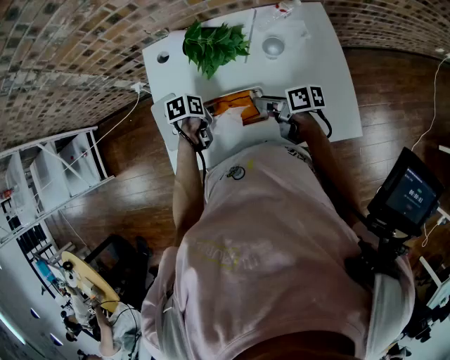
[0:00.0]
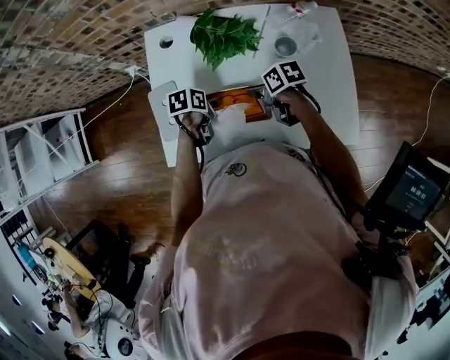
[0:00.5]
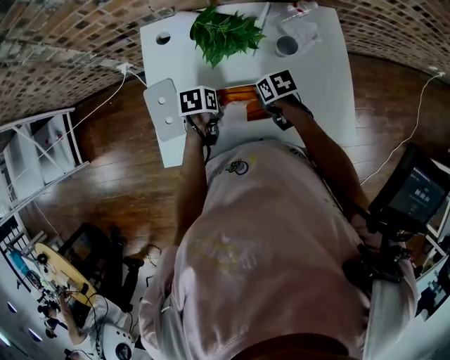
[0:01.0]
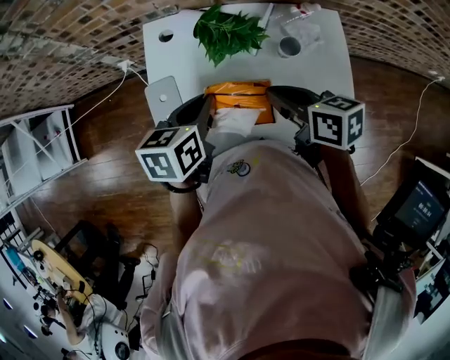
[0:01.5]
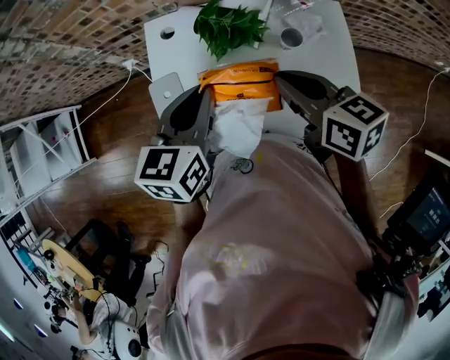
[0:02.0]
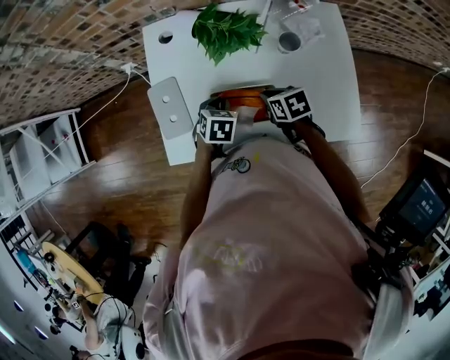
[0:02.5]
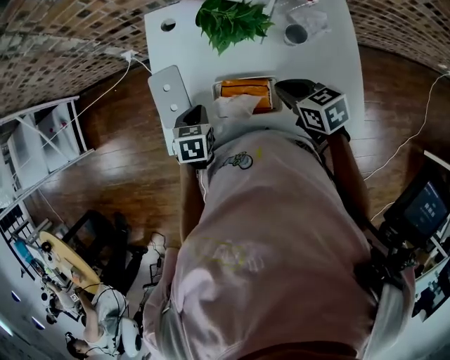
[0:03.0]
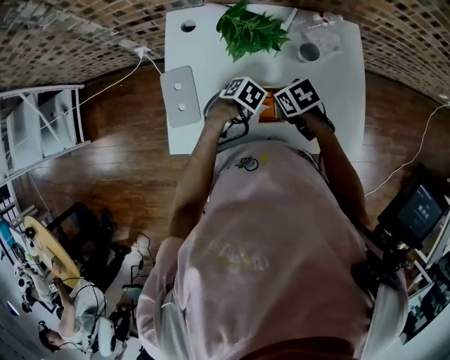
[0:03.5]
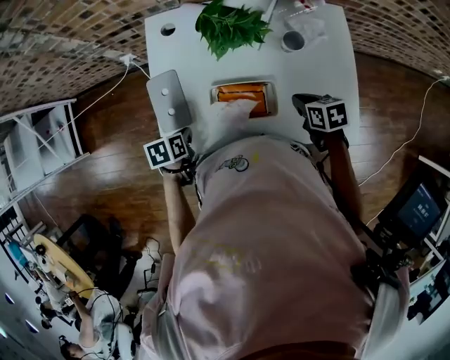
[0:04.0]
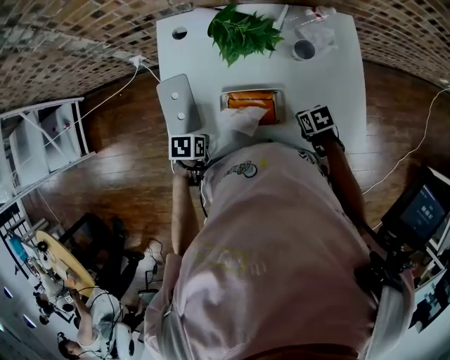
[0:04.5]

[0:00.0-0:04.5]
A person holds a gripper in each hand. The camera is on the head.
0:00.0 to 0:02.0: Both grippers move upward, some 25 cm. The left gripper angles its fingers upward, by approximately 40 degrees, and closes; the right gripper changes its angle by approximately 40 degrees, and closes up.
0:02.0 to 0:04.5: The left gripper swings up and down, about 30 cm each way, with 2 reversals, and tilts its fingers roughly 40 degrees downward. The right gripper swings up and down, roughly 30 cm each way, with 2 reversals, and angles its fingers downward, by some 50 degrees.

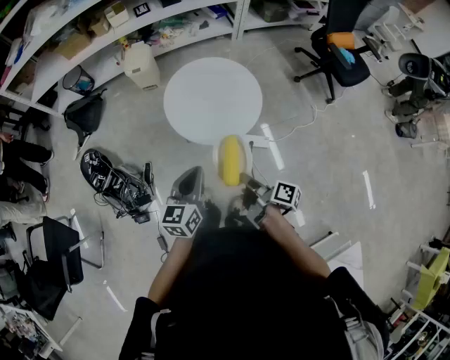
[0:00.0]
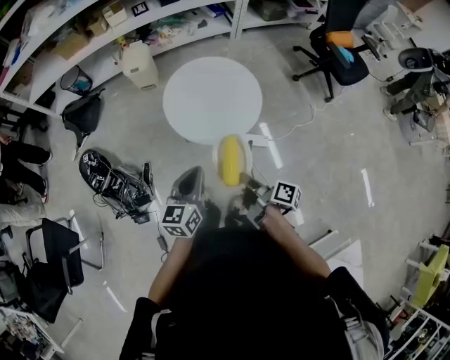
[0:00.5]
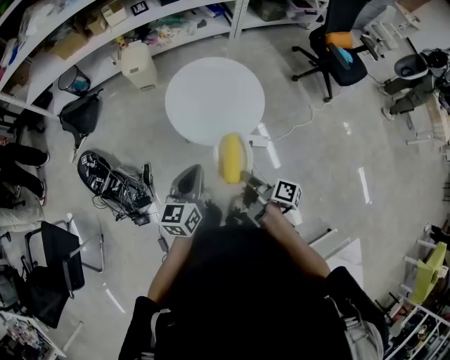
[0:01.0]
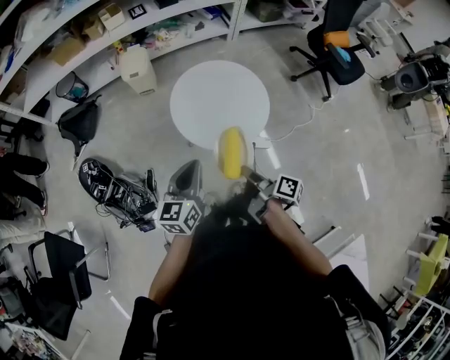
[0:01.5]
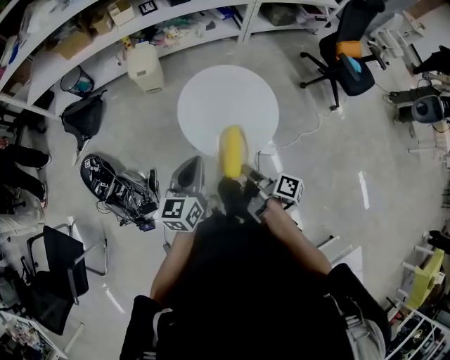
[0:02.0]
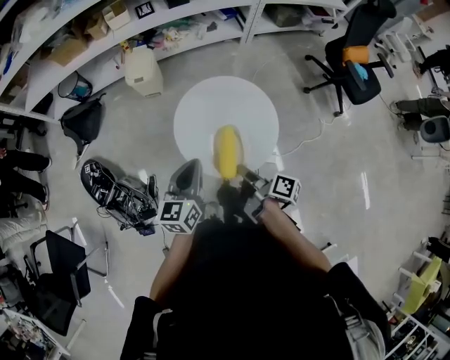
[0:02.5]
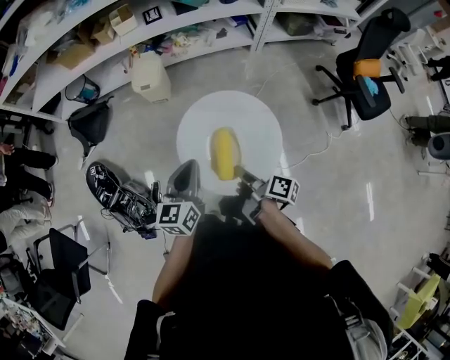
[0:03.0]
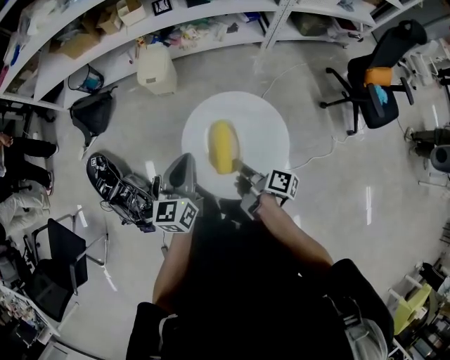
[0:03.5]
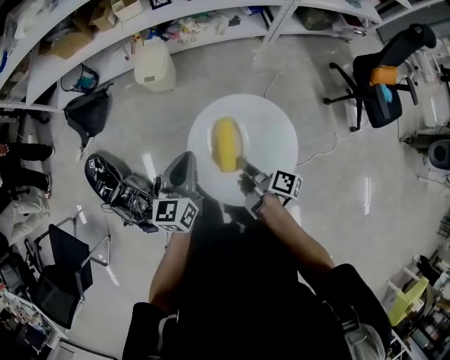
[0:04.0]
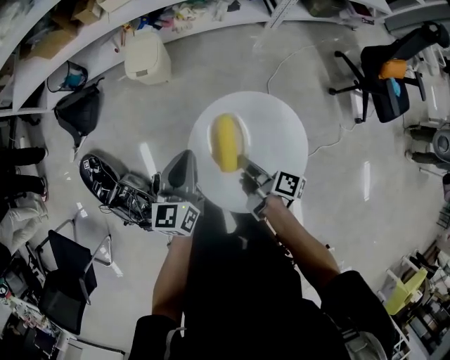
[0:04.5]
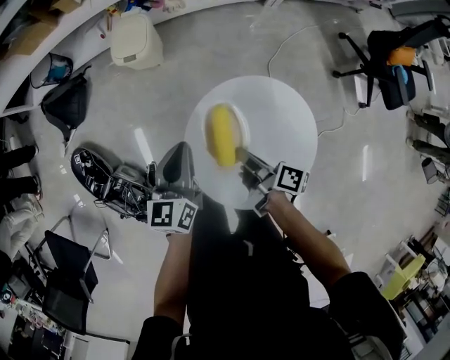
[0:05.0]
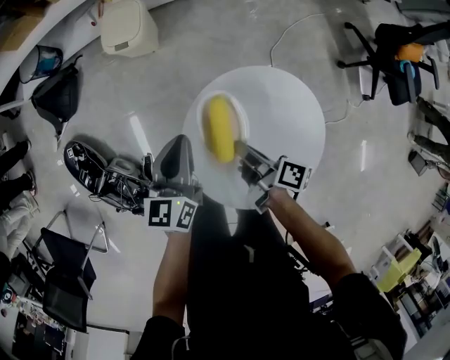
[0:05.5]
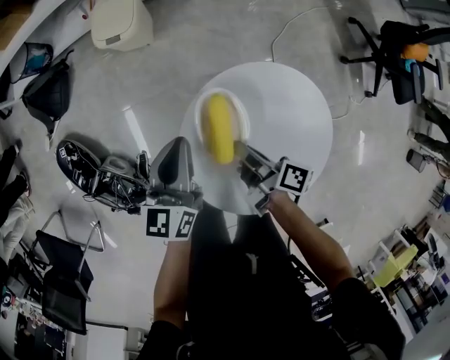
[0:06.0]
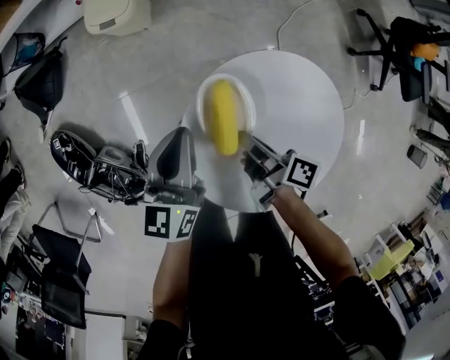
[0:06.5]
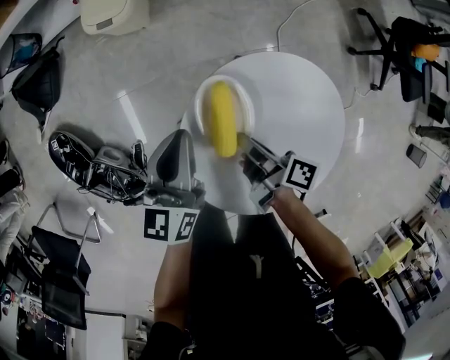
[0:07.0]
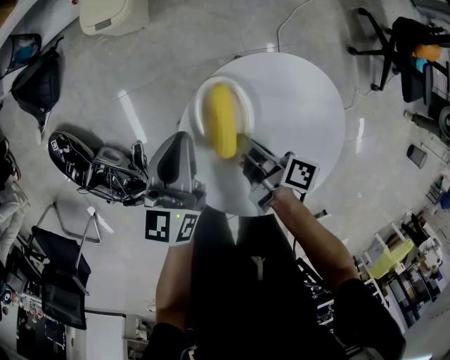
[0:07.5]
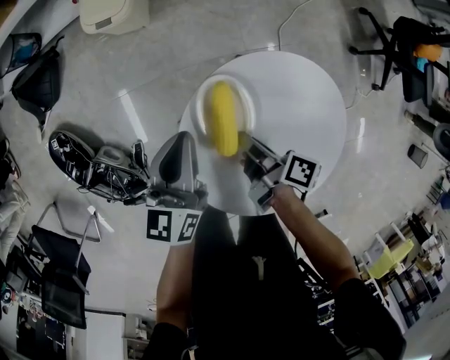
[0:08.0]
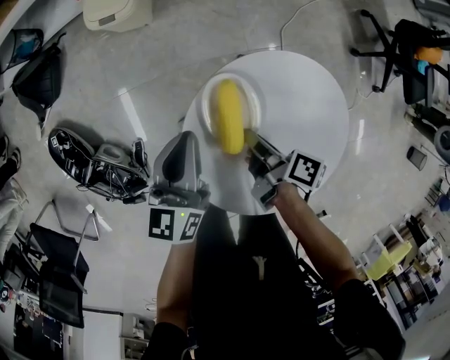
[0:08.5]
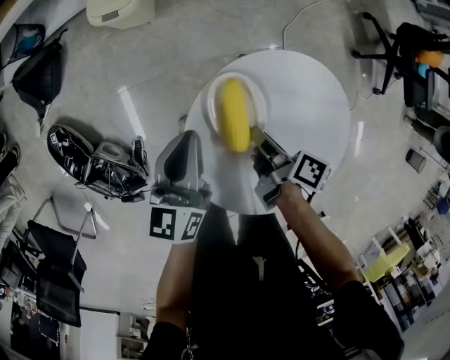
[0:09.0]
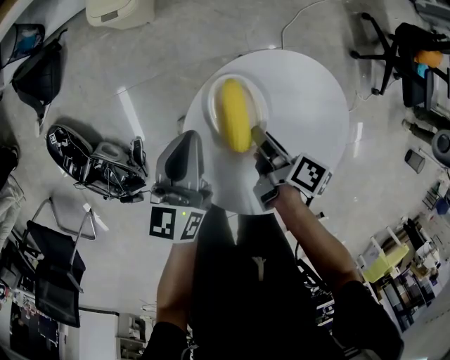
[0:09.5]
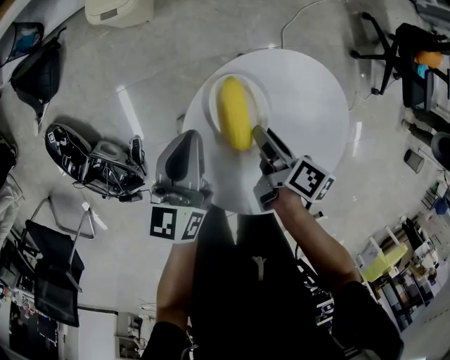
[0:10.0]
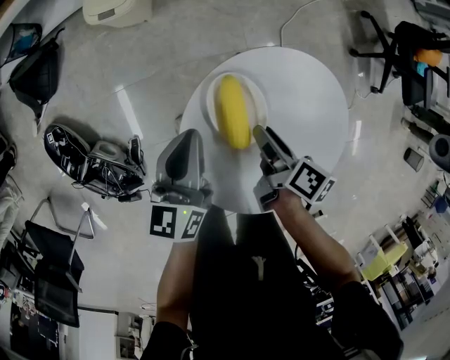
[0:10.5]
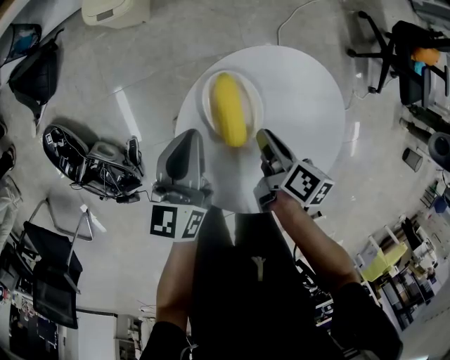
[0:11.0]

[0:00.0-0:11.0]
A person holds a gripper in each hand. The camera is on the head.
0:00.0 to 0:02.0: The left gripper shifts by roughly 15 cm.
0:02.0 to 0:03.5: The left gripper moves approximately 20 cm.
0:03.5 to 0:05.5: The left gripper heads downward, covering about 15 cm.
0:05.5 to 0:07.5: The left gripper is displaced downward by about 5 cm.

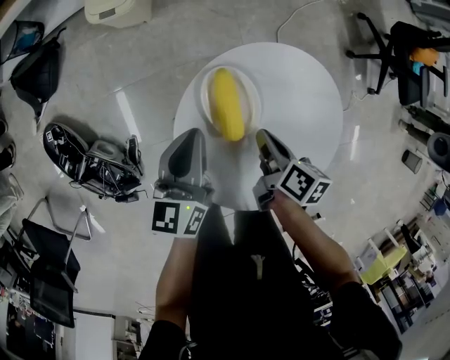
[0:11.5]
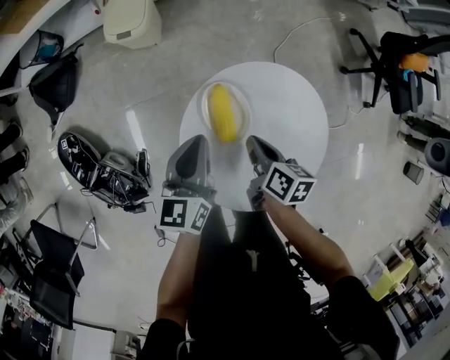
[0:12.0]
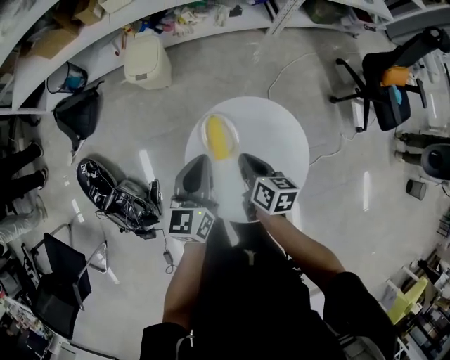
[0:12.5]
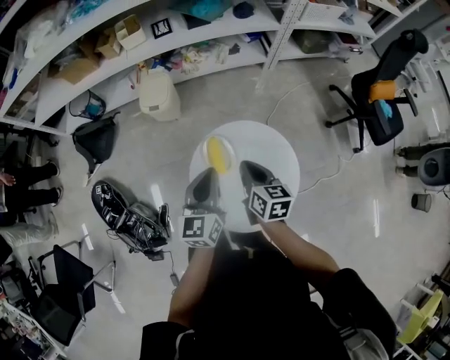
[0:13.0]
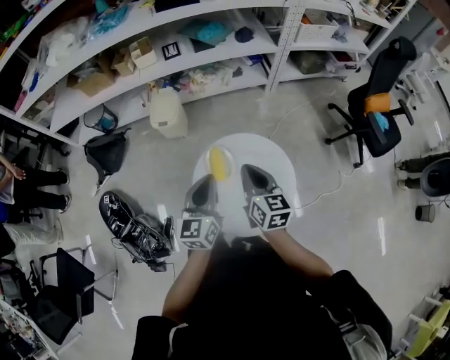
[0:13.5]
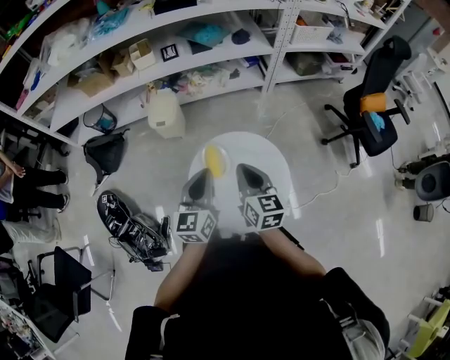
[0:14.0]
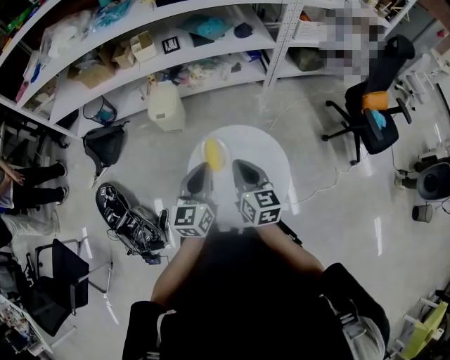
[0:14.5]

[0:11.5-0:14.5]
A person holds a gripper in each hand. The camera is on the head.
0:11.5 to 0:13.0: The left gripper heads upward, covering some 20 cm.
0:13.0 to 0:14.5: The left gripper is displaced upward by roughly 5 cm.

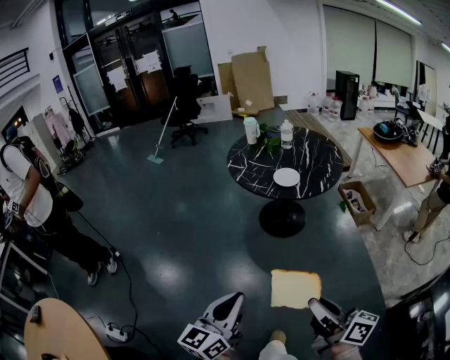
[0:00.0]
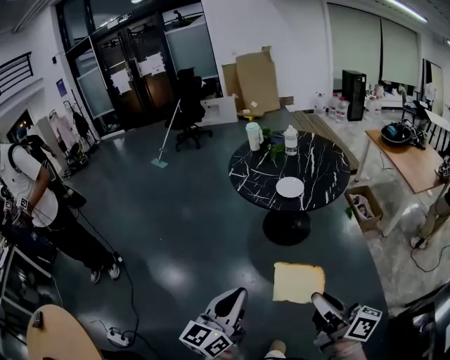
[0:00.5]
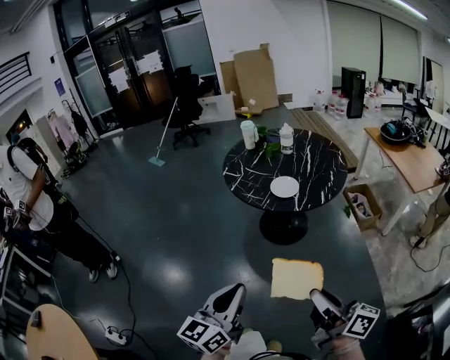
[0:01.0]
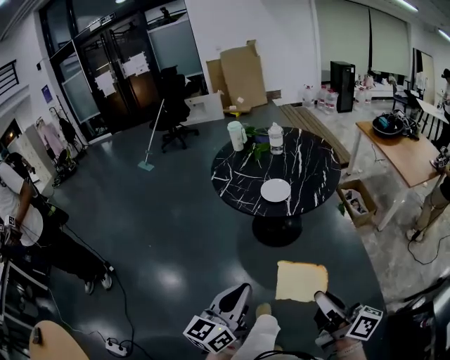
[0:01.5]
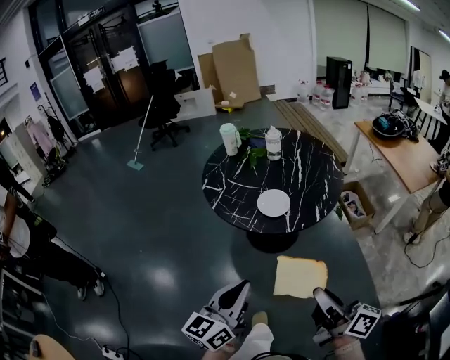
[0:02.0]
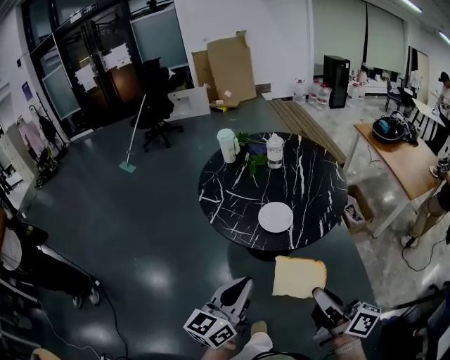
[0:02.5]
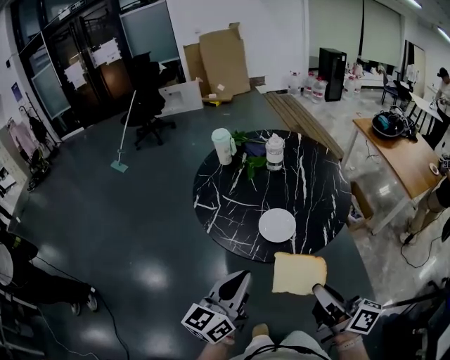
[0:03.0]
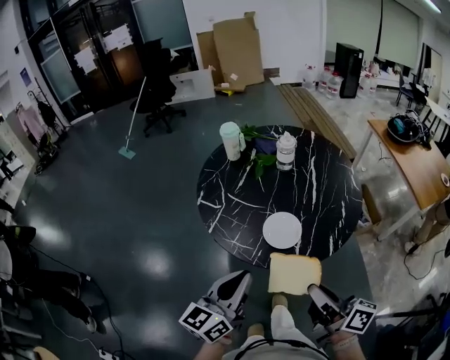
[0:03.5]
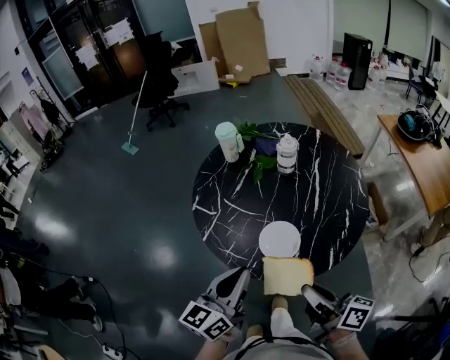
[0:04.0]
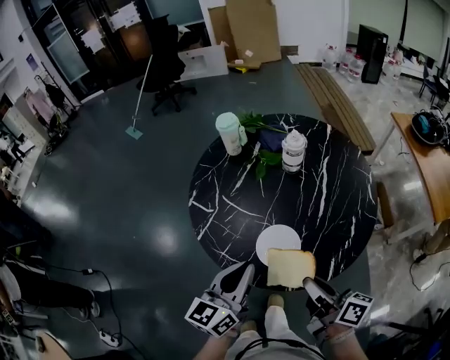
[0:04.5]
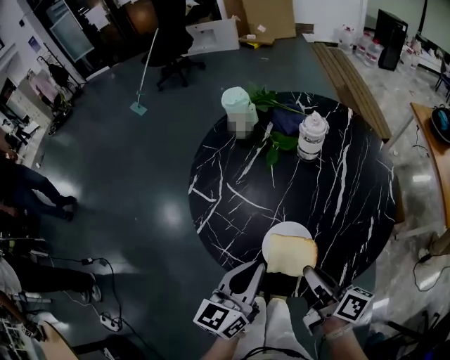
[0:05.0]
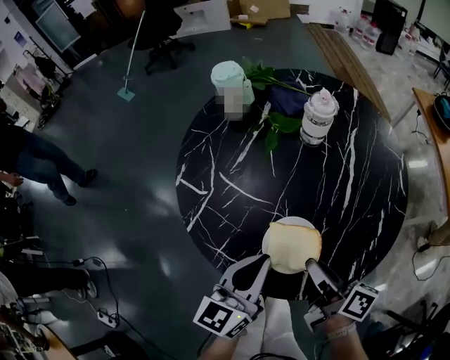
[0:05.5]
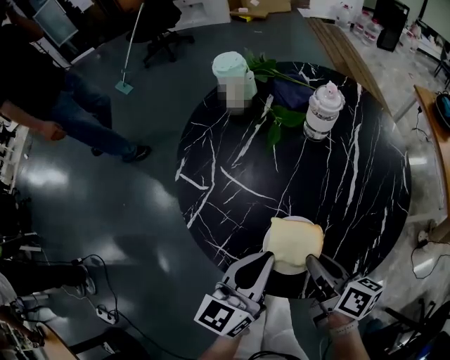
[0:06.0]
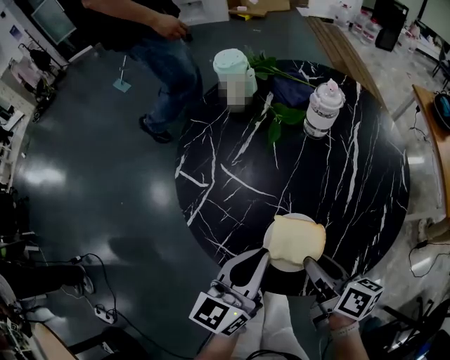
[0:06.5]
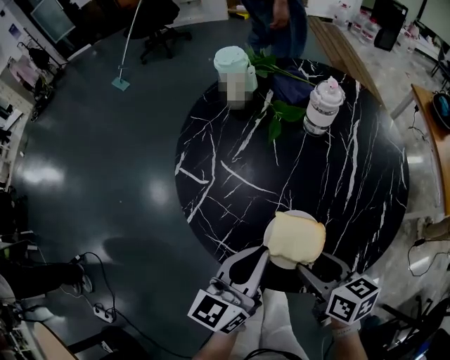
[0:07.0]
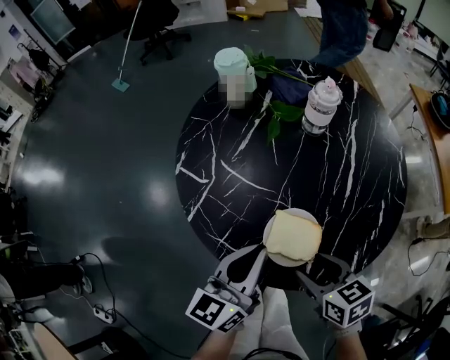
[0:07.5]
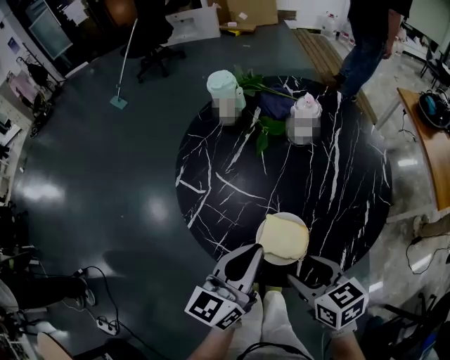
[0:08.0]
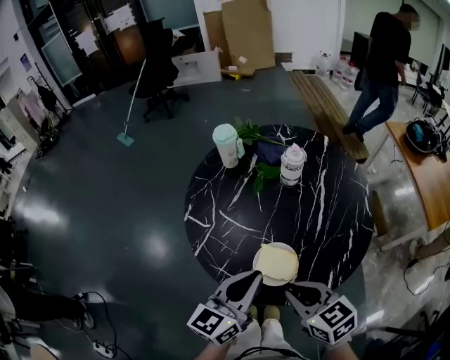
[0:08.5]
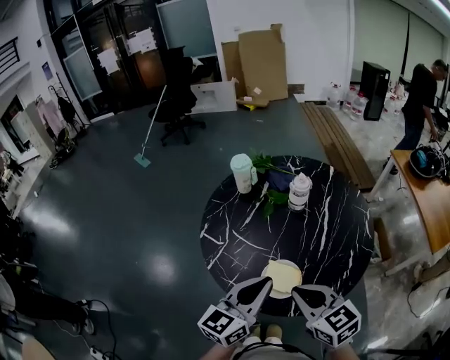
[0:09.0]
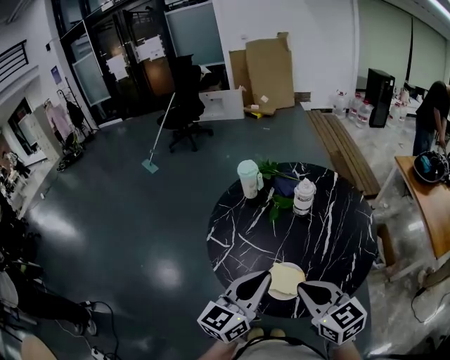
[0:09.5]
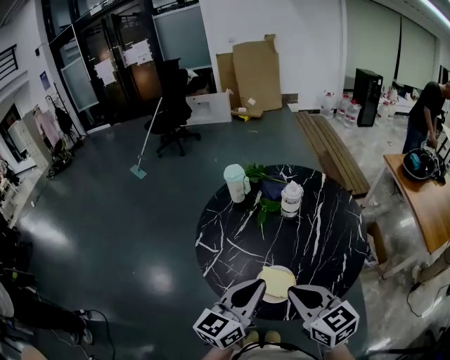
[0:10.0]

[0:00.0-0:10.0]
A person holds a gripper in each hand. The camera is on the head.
0:00.0 to 0:02.0: The left gripper heads forward, covering some 30 cm. The right gripper shifts approximately 30 cm forward and to the right.
0:02.0 to 0:04.0: The grippers both shift forward by approximately 30 cm.
0:04.0 to 0:06.0: The right gripper goes roughly 20 cm forward and downward, and turns by some 20 degrees. Meanwhile the left gripper heads downward, forward and to the right, covering about 15 cm.
0:06.0 to 0:08.0: The left gripper travels upward by roughly 5 cm, while the right gripper is displaced backward by roughly 5 cm, swivels roughly 40 degrees, and opens its fingers.
0:08.0 to 0:10.0: The left gripper goes approximately 10 cm upward, while the right gripper heads upward, covering approximately 15 cm, turns by some 30 degrees, and closes.
